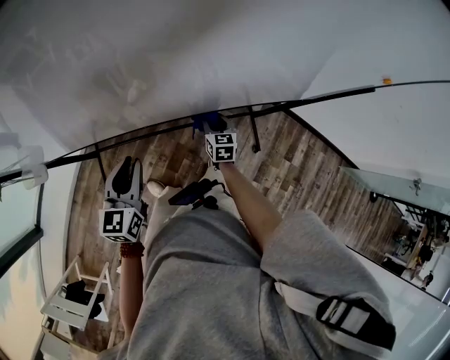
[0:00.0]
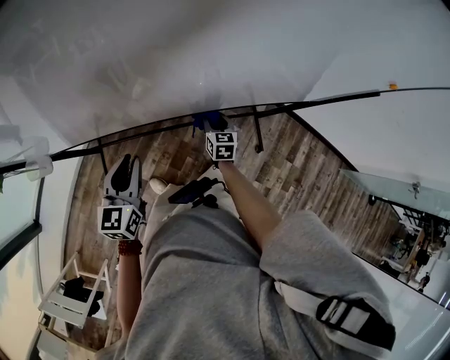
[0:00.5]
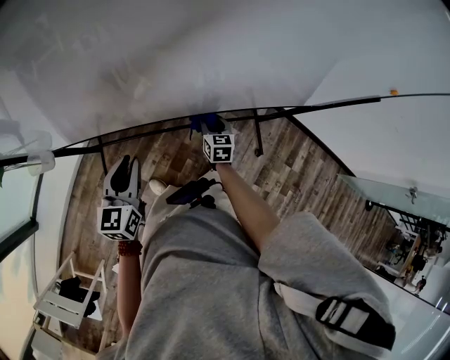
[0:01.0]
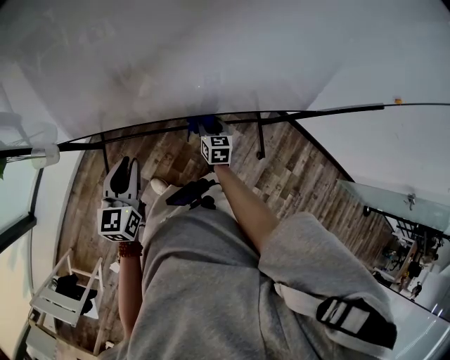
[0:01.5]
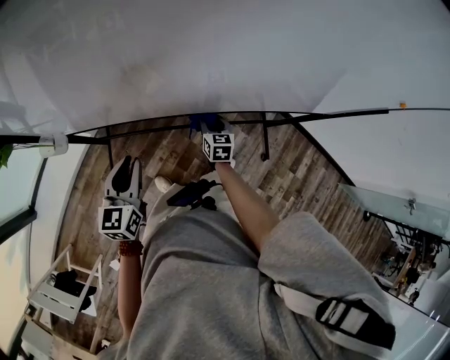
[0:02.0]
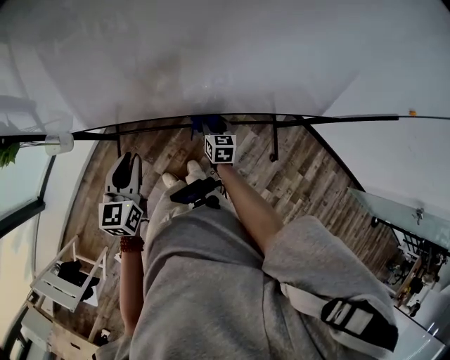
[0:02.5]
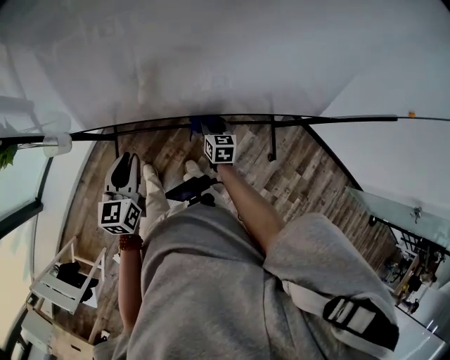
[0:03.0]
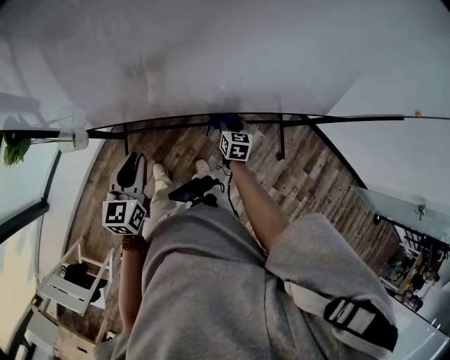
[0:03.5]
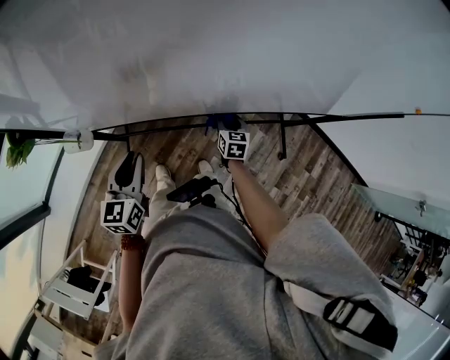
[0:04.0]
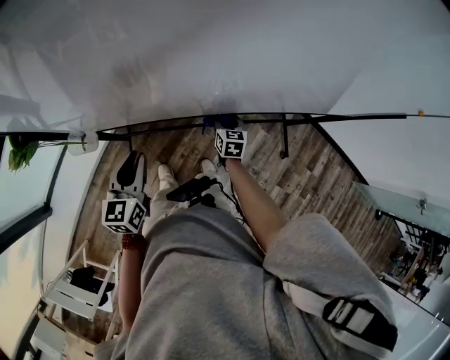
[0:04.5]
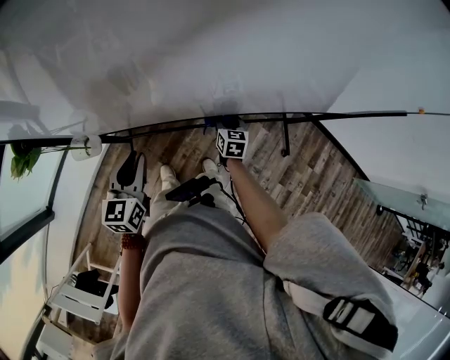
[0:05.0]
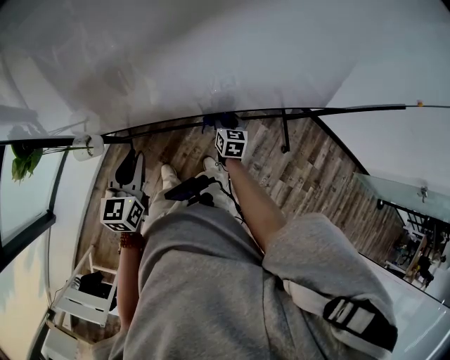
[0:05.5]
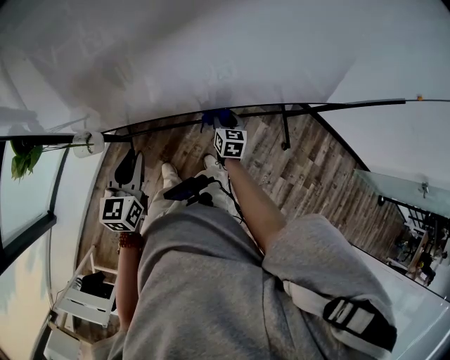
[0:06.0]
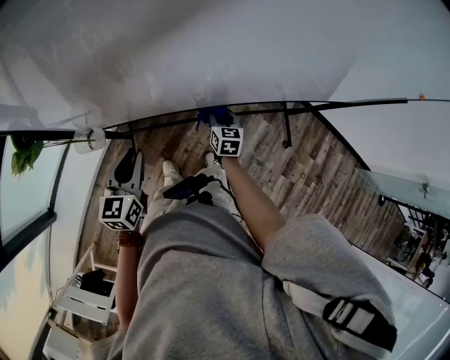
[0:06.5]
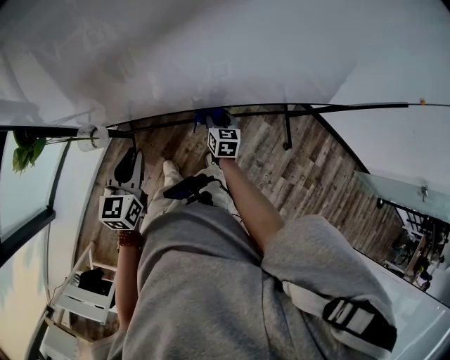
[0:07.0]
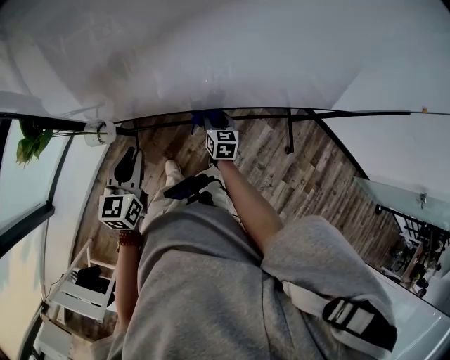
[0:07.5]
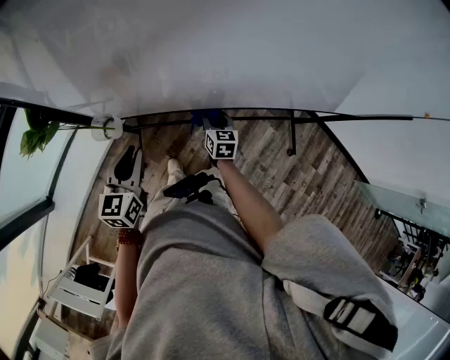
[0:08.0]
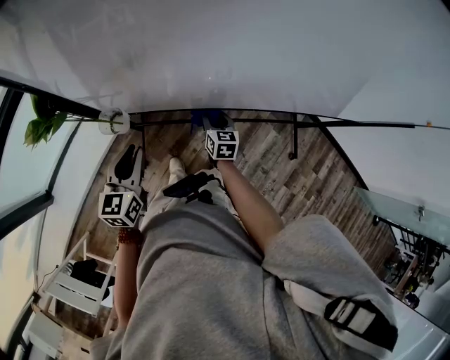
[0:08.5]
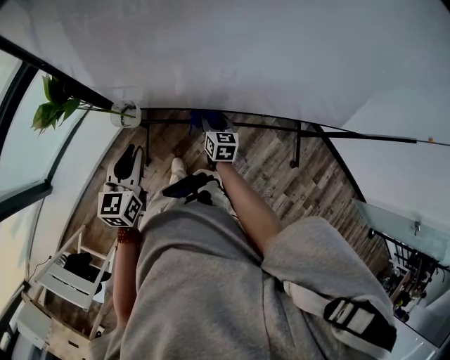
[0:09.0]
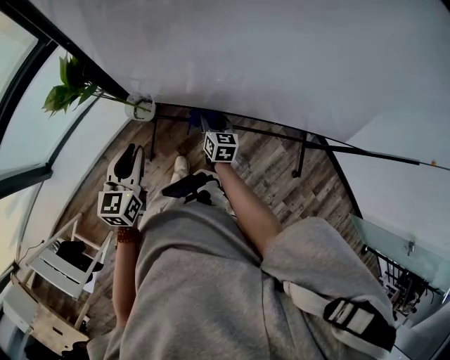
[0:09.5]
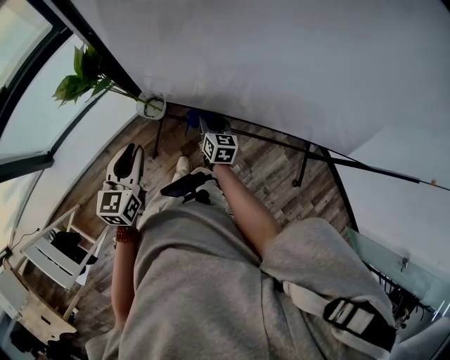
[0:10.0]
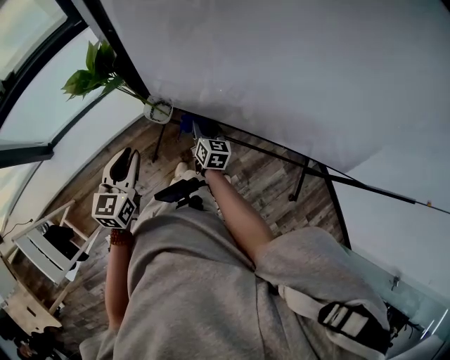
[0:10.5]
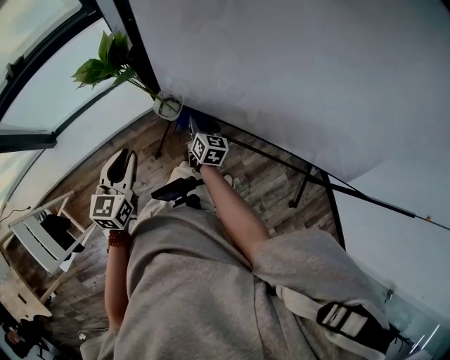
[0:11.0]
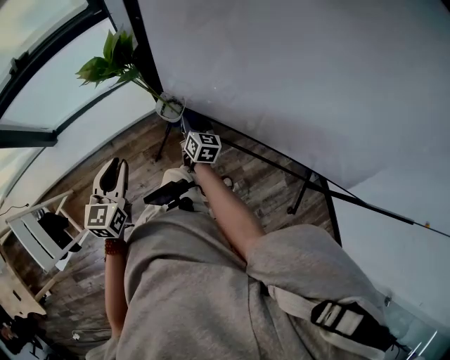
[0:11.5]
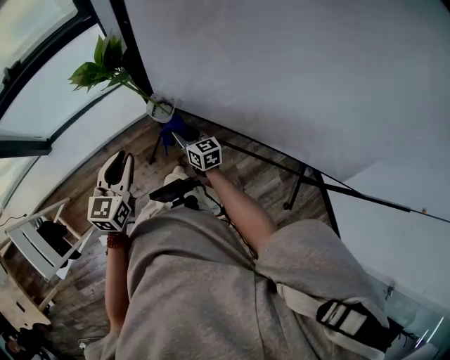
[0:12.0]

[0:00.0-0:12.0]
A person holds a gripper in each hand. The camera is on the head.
0:00.0 to 0:02.0: The grippers both shift to the left by about 15 cm.
0:02.0 to 0:04.0: The left gripper heads to the left, covering approximately 10 cm.
0:04.0 to 0:06.0: The grippers both shift to the left by some 5 cm.
0:06.0 to 0:08.0: The left gripper travels to the left by some 5 cm, while the right gripper is displaced to the left by approximately 10 cm.
0:08.0 to 0:10.0: Both grippers move to the left, roughly 15 cm.
0:10.0 to 0:12.0: The right gripper is displaced to the left by some 15 cm, and rotates roughly 30 degrees.

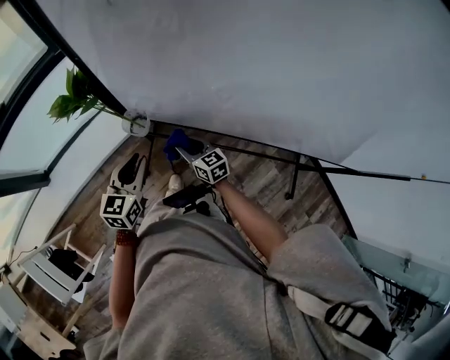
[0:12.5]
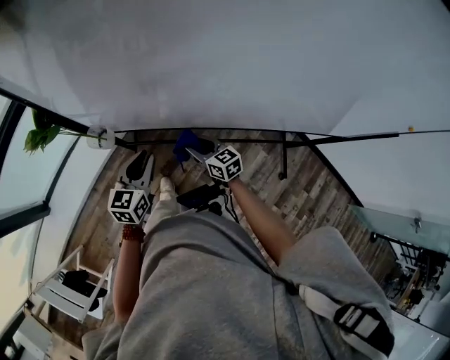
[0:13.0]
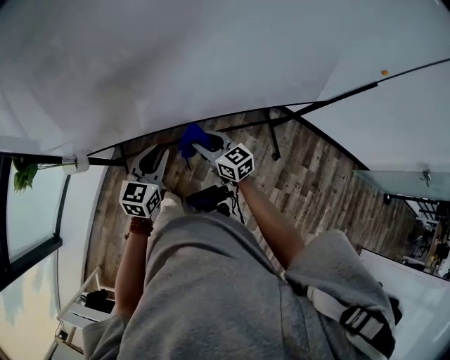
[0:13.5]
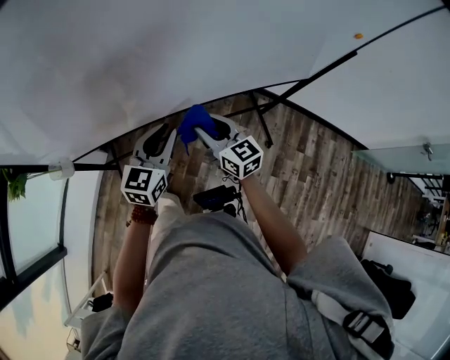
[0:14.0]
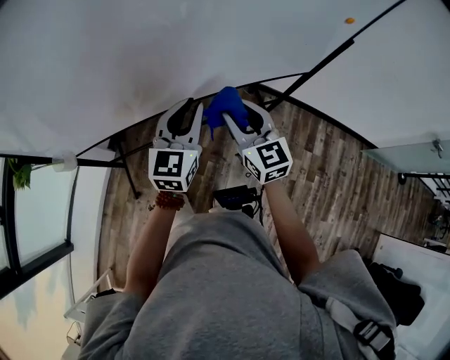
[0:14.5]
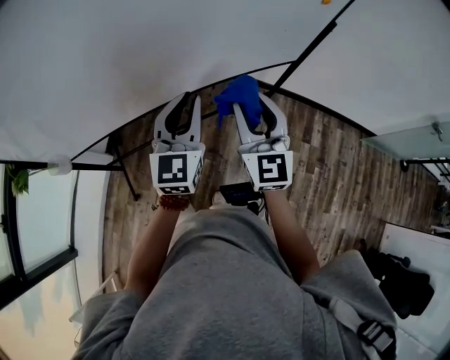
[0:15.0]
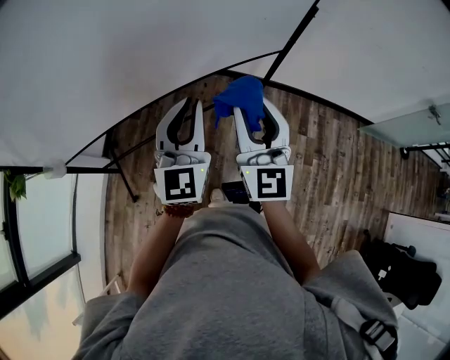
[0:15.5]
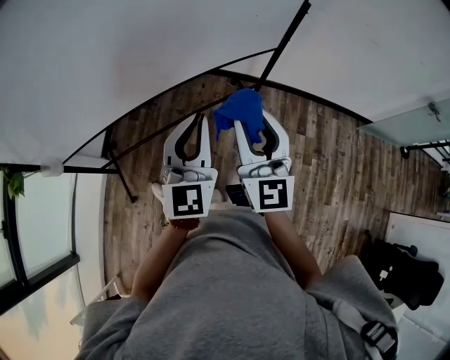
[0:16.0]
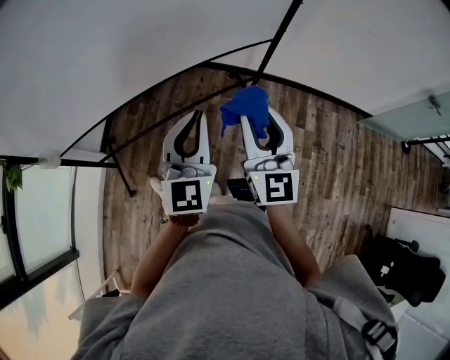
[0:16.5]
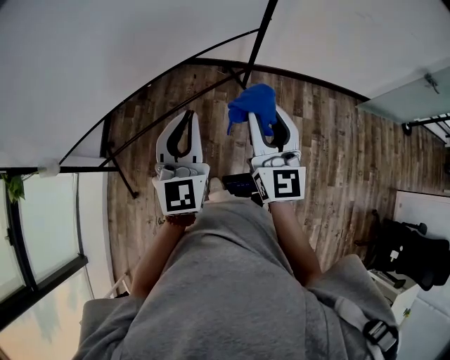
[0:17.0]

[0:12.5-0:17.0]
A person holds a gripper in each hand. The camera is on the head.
0:12.5 to 0:14.5: Both grippers are carried about 50 cm. The left gripper changes its angle by some 40 degrees, while the right gripper turns by approximately 50 degrees.
0:14.5 to 0:17.0: The right gripper is displaced to the right and backward by roughly 30 cm, and rotates some 30 degrees. Meanwhile the left gripper moves backward and to the right, approximately 25 cm.

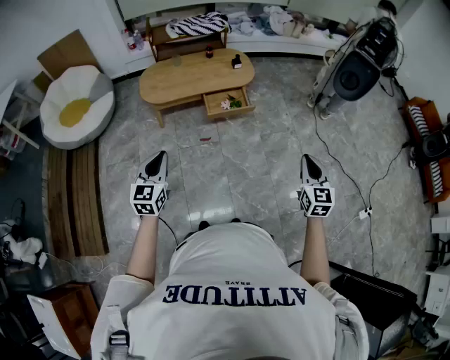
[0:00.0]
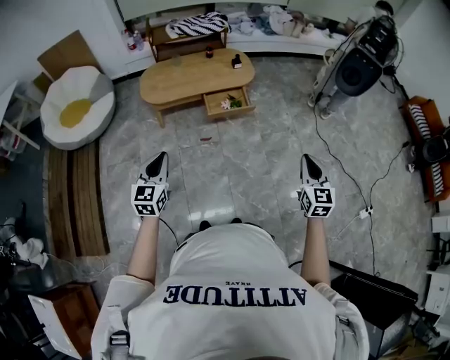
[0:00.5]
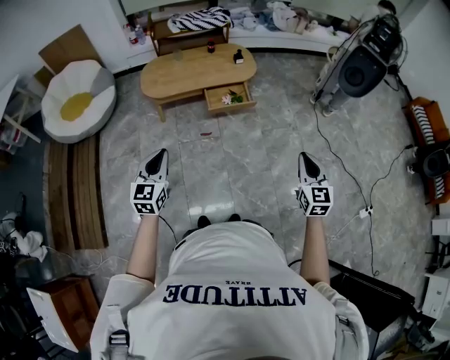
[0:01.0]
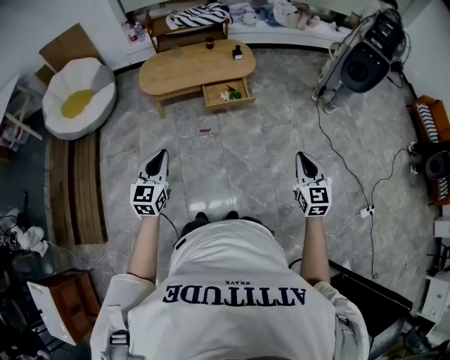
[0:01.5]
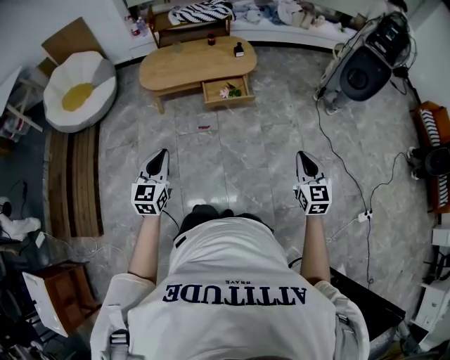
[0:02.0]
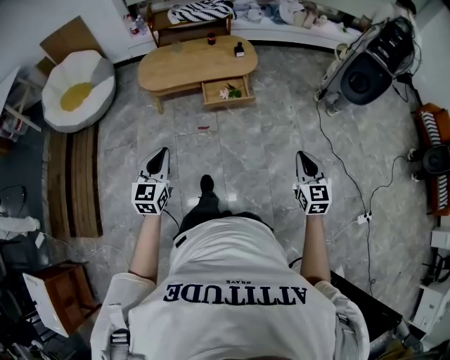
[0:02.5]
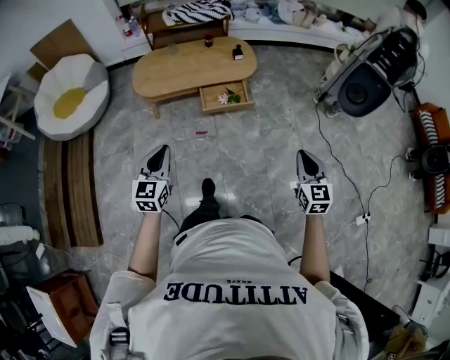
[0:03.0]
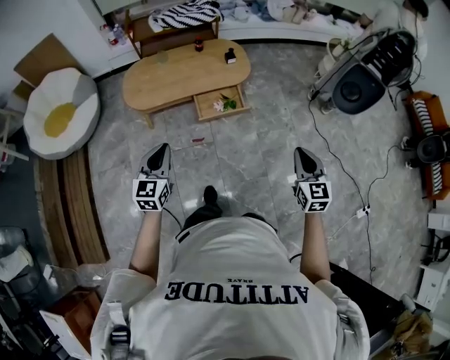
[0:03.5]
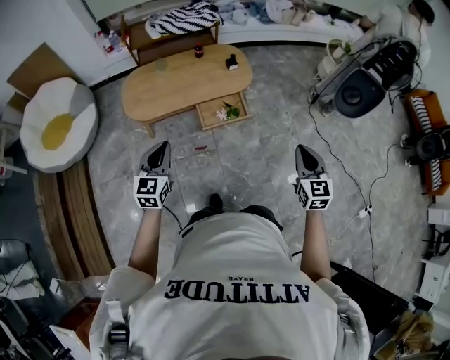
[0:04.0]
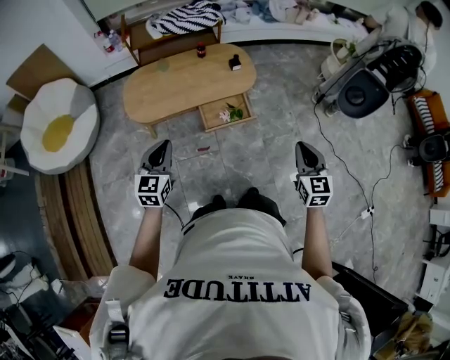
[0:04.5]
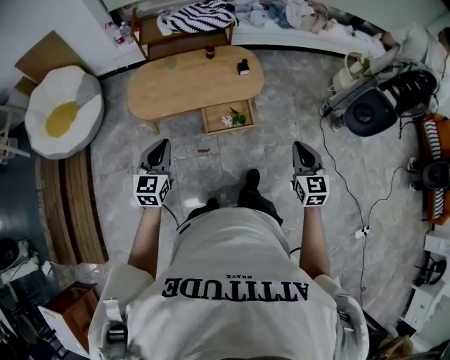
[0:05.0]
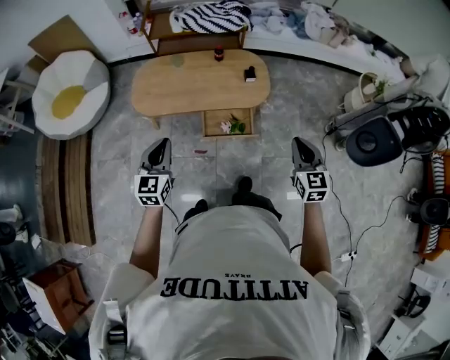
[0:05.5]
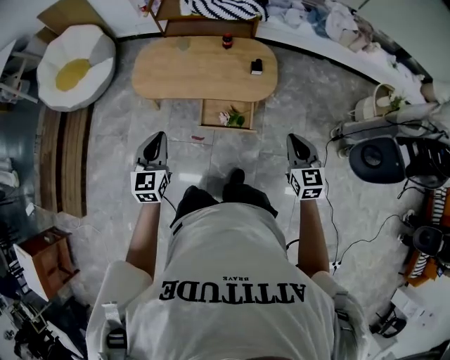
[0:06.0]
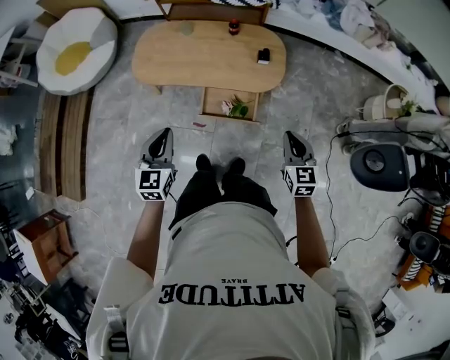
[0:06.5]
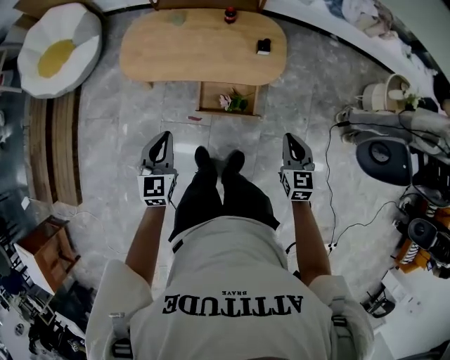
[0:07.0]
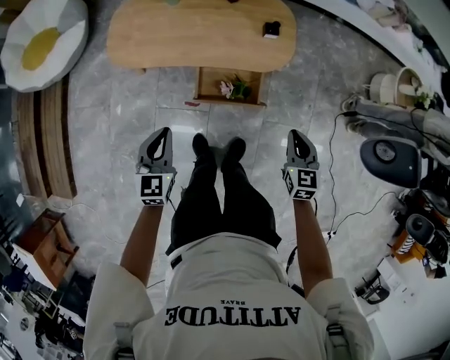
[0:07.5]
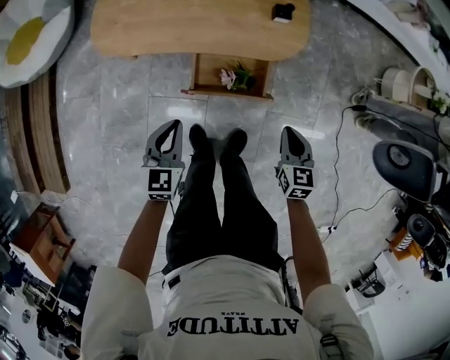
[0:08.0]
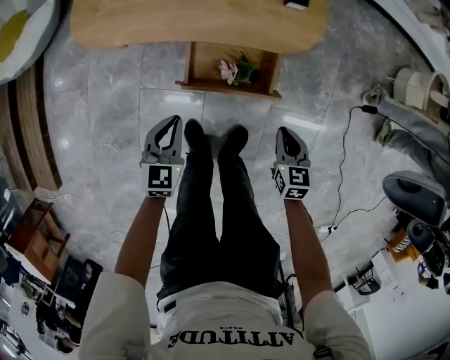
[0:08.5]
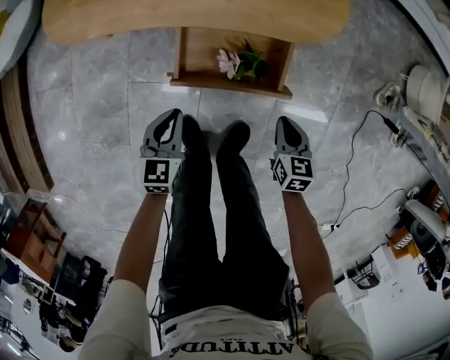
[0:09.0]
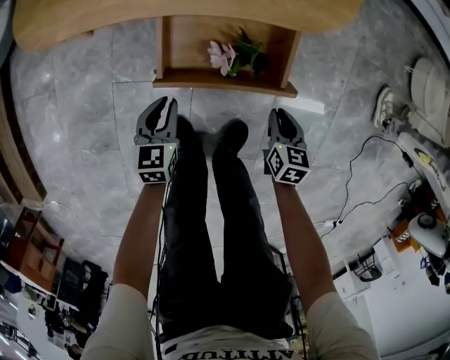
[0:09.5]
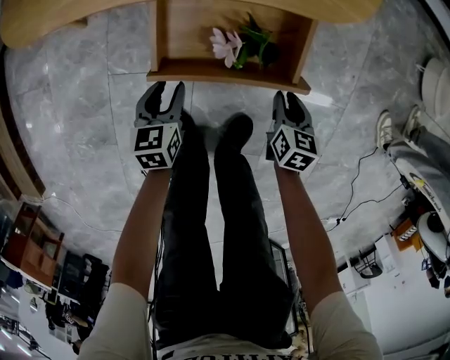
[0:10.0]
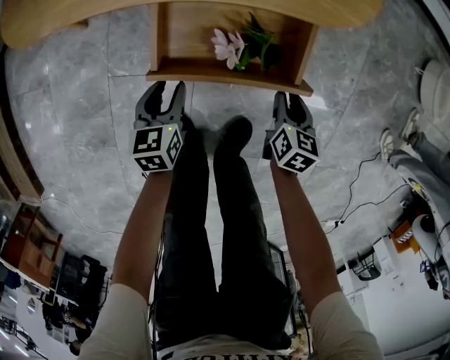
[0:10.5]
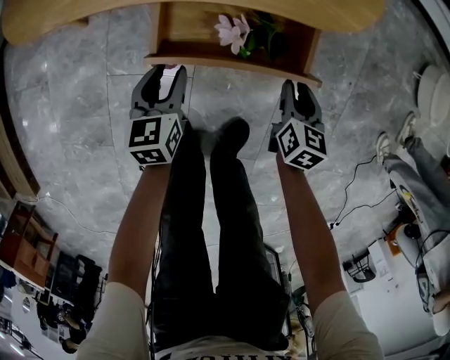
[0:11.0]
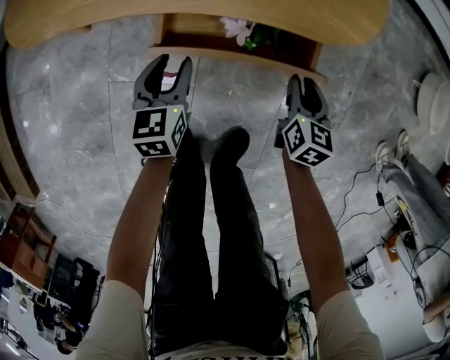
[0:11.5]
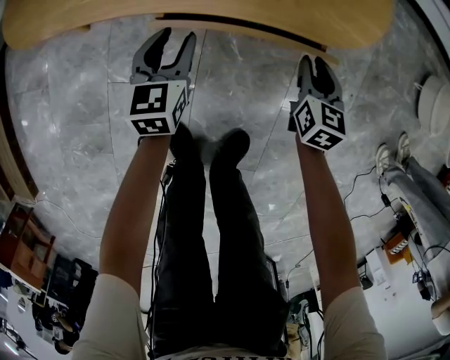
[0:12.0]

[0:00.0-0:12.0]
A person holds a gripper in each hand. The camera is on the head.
0:00.0 to 0:02.0: The left gripper heads to the right, covering roughly 10 cm, while the right gripper heads to the right, covering about 5 cm.
0:02.0 to 0:04.0: The right gripper travels forward and to the left by about 30 cm, while the left gripper shifts about 35 cm forward.
0:04.0 to 0:06.0: The right gripper changes place by approximately 30 cm, and changes its angle by roughly 30 degrees; the left gripper shifts by roughly 20 cm, and swivels approximately 30 degrees.
0:06.0 to 0:08.0: The grippers both shift downward by some 30 cm. The right gripper rotates approximately 20 degrees.
0:08.0 to 0:10.0: The grippers both shift downward by roughly 40 cm. The right gripper opens its fingers; the left gripper turns by about 20 degrees, and opens.
0:10.0 to 0:12.0: The two grippers go about 15 cm forward.
